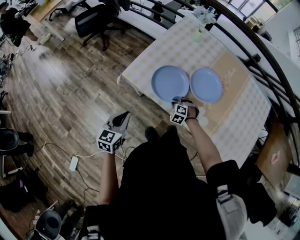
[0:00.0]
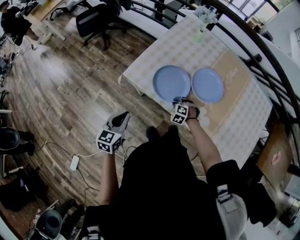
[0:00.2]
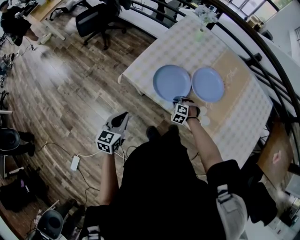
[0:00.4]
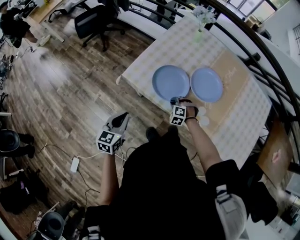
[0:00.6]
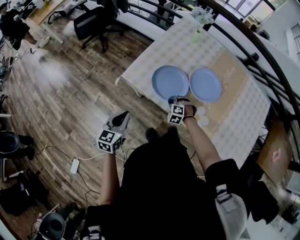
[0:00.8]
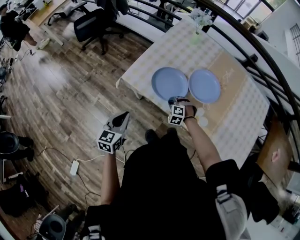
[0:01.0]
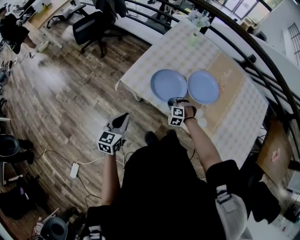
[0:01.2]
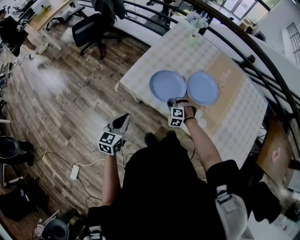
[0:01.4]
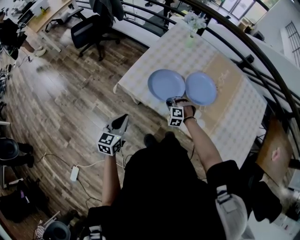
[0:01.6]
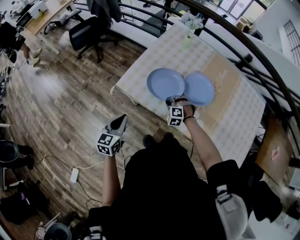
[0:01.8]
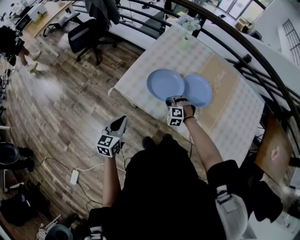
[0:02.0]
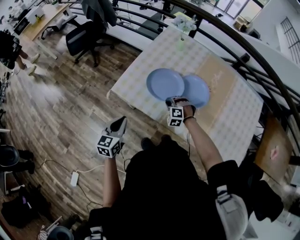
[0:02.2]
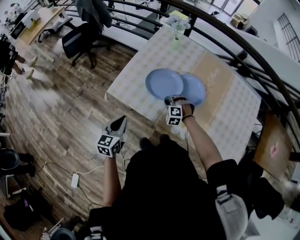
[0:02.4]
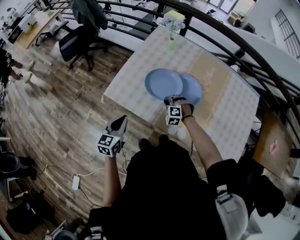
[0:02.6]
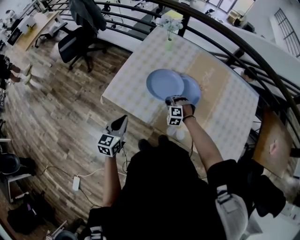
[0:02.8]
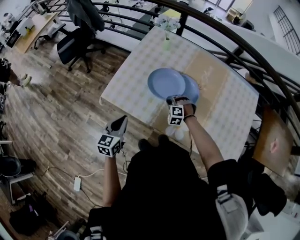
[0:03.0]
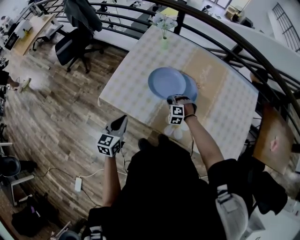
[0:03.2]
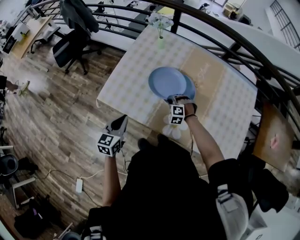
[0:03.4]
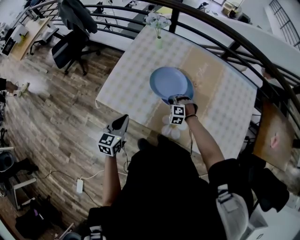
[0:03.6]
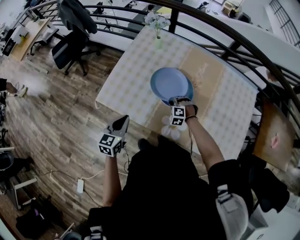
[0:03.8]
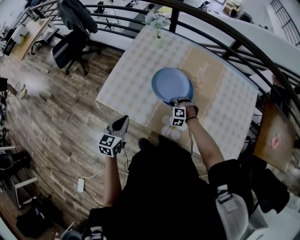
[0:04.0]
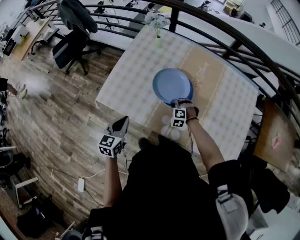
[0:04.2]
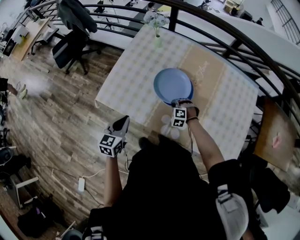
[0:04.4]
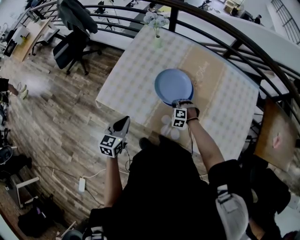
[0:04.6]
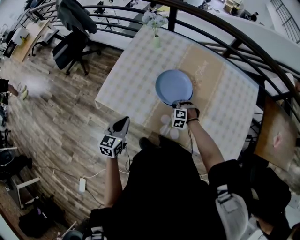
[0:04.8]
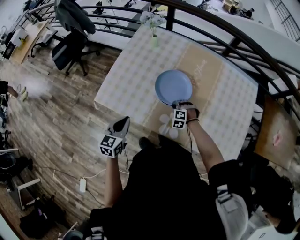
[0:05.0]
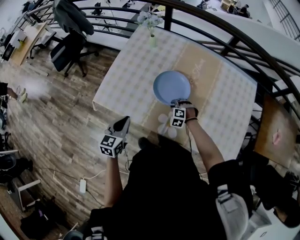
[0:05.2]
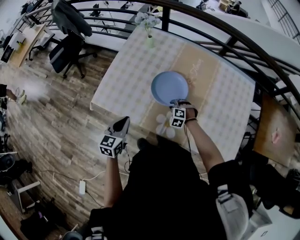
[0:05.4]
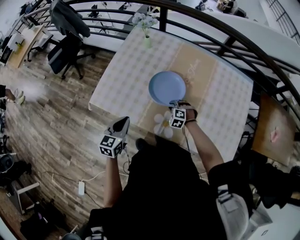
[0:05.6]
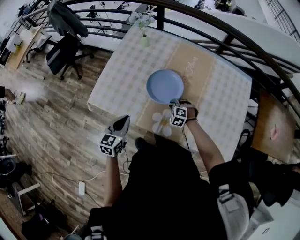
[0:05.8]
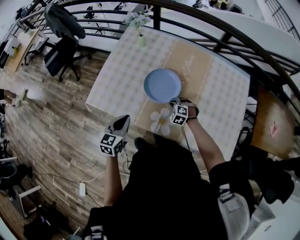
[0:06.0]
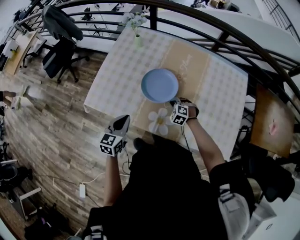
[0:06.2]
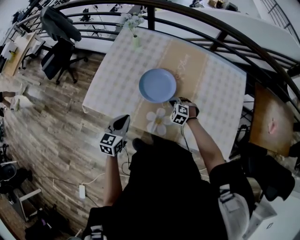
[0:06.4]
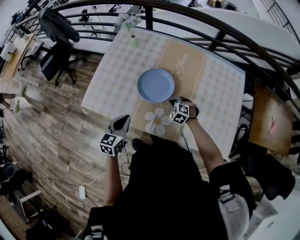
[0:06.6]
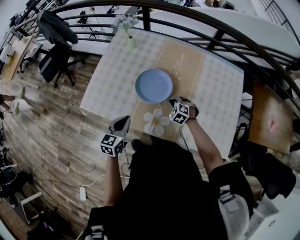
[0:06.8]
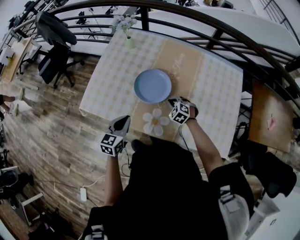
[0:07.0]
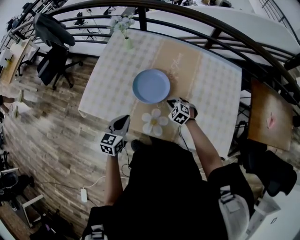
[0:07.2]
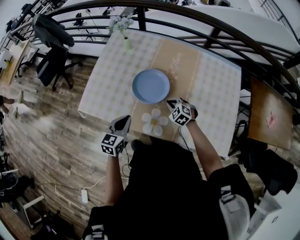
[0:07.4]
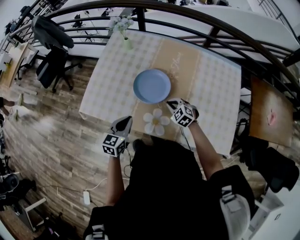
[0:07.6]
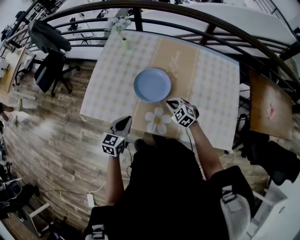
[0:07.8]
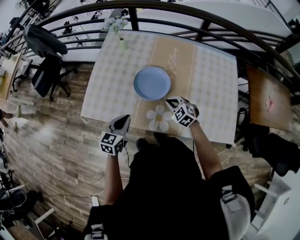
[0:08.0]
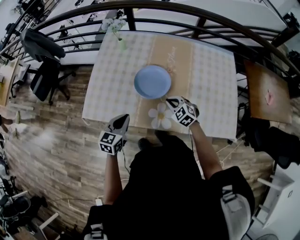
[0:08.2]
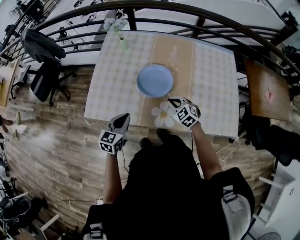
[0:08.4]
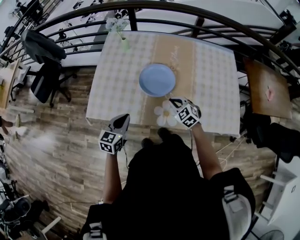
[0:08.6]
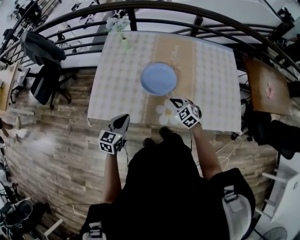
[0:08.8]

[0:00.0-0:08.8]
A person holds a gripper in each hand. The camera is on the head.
0:00.0 to 0:01.4: The grippers stay close to where they were, moving slightly.
0:01.4 to 0:03.0: The right gripper travels to the right, forward and upward by roughly 15 cm. The left gripper travels to the right and forward by roughly 15 cm.
0:03.0 to 0:04.4: Both grippers move to the right, approximately 5 cm.
0:04.4 to 0:05.8: Both grippers travel together to the right, approximately 5 cm.
0:05.8 to 0:07.4: The left gripper goes approximately 10 cm to the right. The right gripper shifts some 10 cm to the right and upward, and rotates approximately 20 degrees.
0:07.4 to 0:08.8: The left gripper is displaced to the left by some 10 cm. The right gripper shifts some 10 cm to the left and backward.

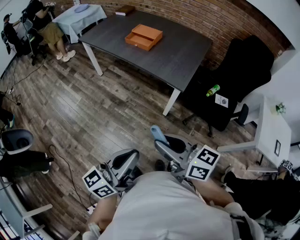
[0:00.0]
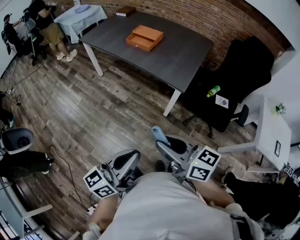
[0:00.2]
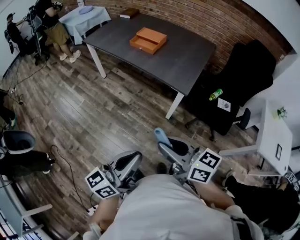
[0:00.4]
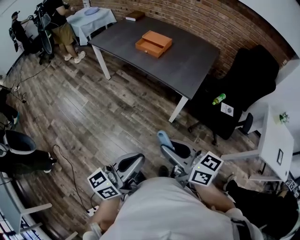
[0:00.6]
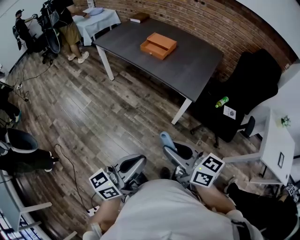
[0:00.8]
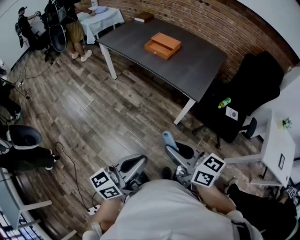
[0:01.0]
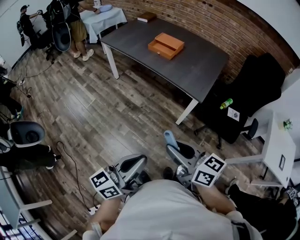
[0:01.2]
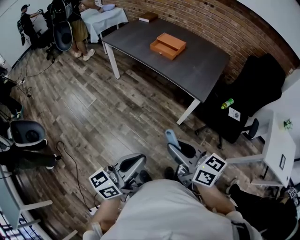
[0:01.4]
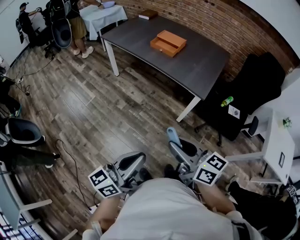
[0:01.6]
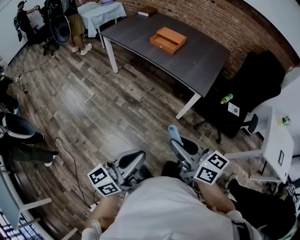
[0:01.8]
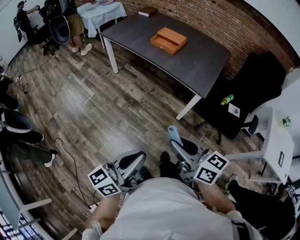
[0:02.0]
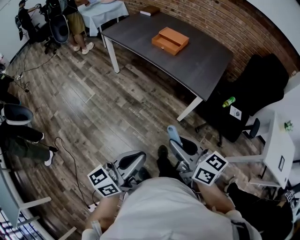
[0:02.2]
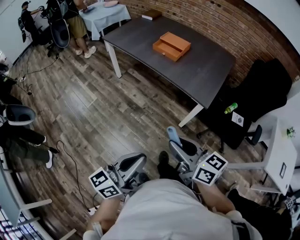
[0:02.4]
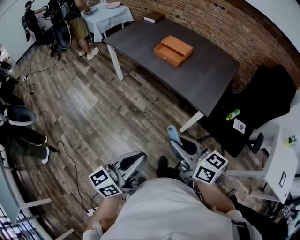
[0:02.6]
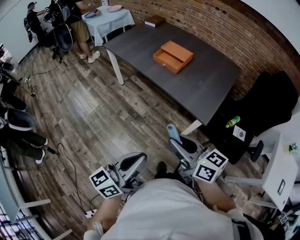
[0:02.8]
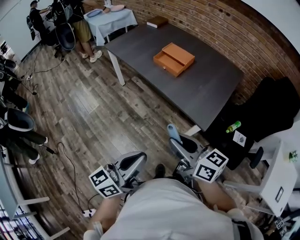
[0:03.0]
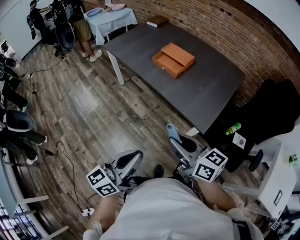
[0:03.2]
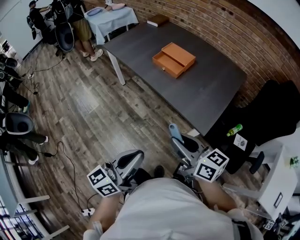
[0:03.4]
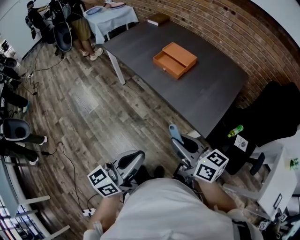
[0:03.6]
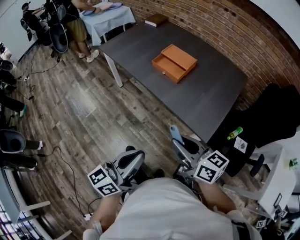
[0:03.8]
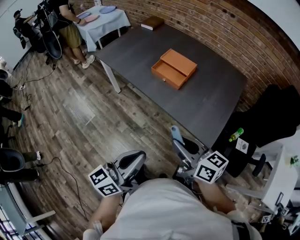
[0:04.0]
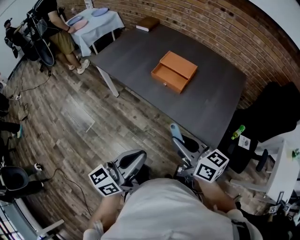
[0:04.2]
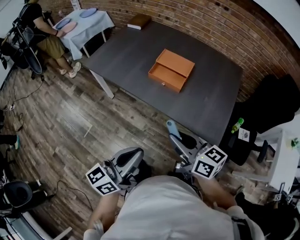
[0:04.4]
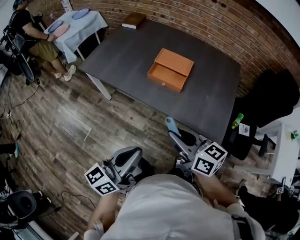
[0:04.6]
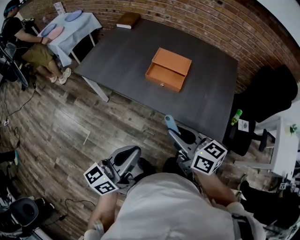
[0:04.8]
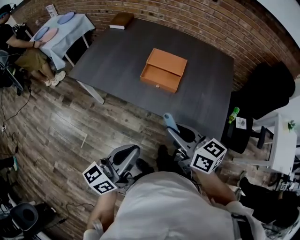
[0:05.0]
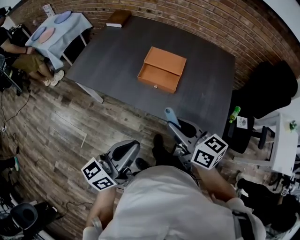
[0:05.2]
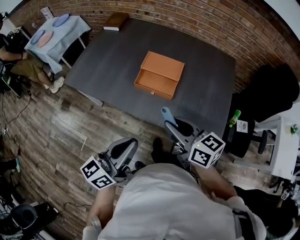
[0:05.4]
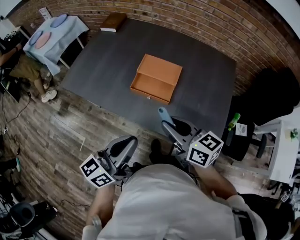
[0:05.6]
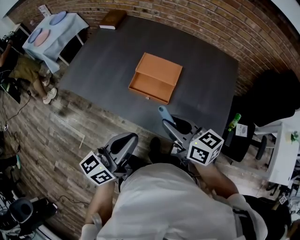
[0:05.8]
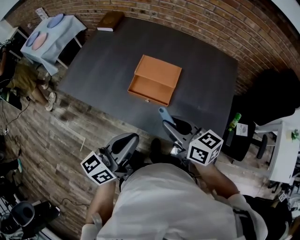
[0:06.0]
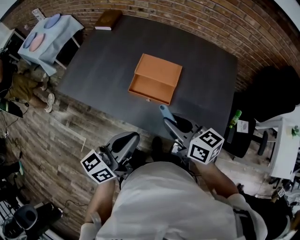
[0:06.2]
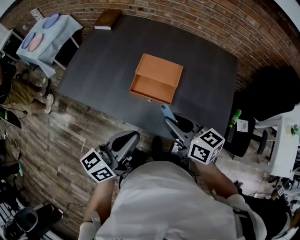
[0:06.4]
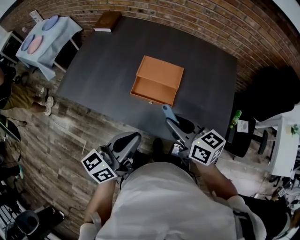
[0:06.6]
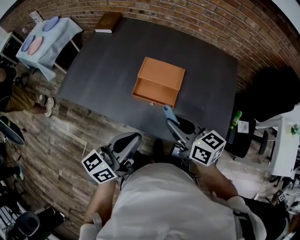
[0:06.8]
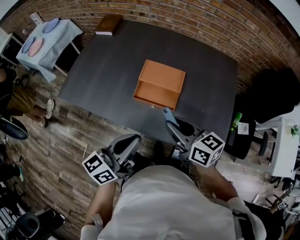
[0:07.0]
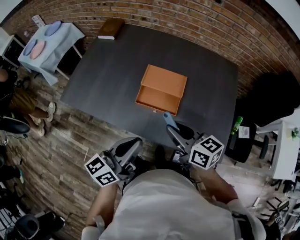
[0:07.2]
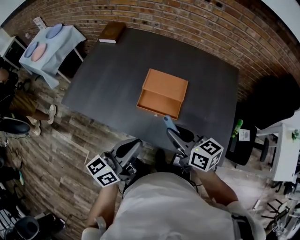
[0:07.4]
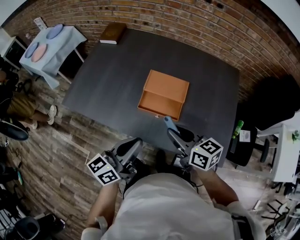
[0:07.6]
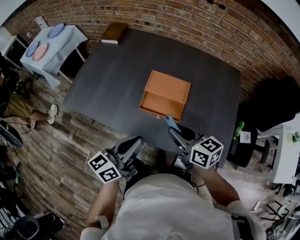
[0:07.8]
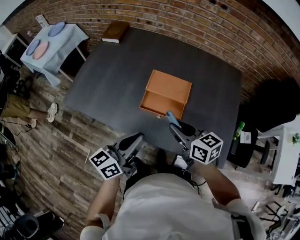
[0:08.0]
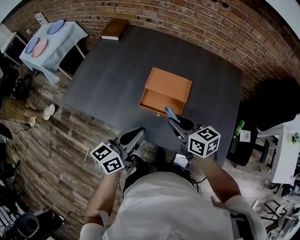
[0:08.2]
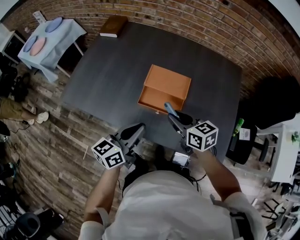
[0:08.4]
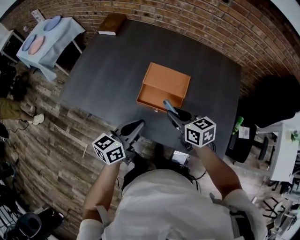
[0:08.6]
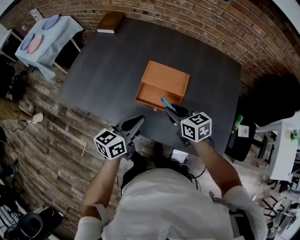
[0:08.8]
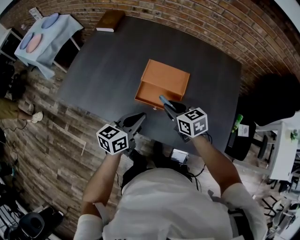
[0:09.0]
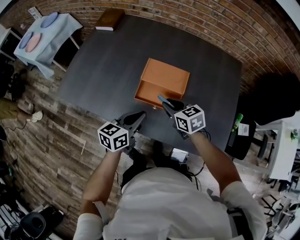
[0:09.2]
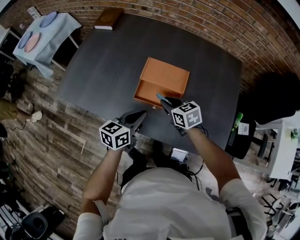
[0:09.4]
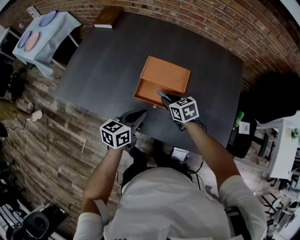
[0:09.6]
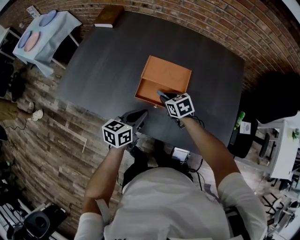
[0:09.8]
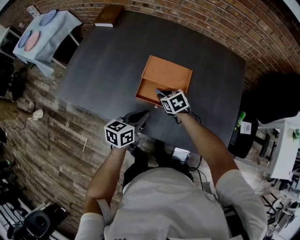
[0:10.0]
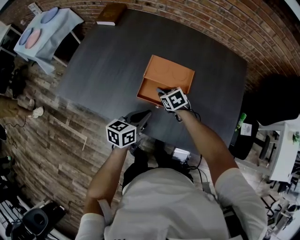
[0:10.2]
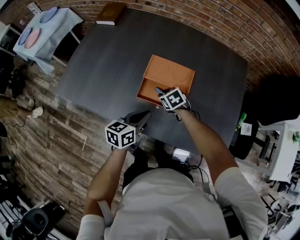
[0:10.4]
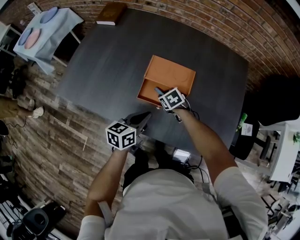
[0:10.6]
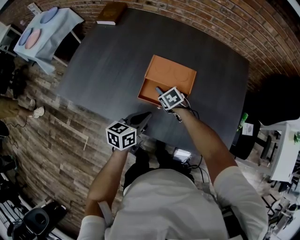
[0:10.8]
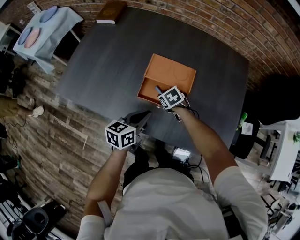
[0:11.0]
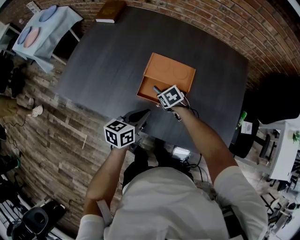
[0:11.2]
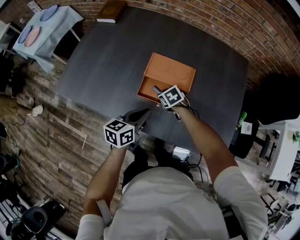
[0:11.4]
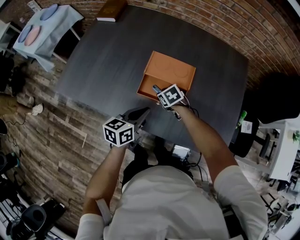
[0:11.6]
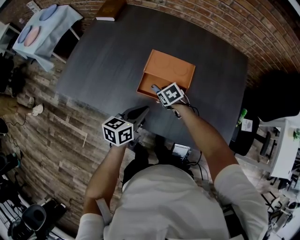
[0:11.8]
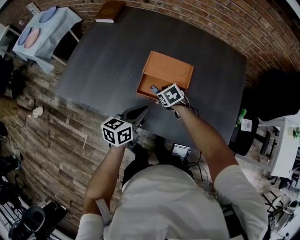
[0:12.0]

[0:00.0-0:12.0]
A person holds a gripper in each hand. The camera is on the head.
0:00.0 to 0:01.6: Both grippers move to the left, some 10 cm.
0:01.6 to 0:03.0: The left gripper is displaced forward and to the right by about 20 cm, while the right gripper travels forward by about 20 cm.
0:03.0 to 0:04.4: The right gripper travels forward by about 20 cm, while the left gripper travels forward and to the left by some 25 cm.
0:04.4 to 0:06.0: The grippers both shift forward by roughly 20 cm.
0:06.0 to 0:07.6: The right gripper moves roughly 5 cm. The left gripper is displaced forward and to the left by approximately 5 cm.
0:07.6 to 0:09.0: The grippers both shift downward and forward by about 15 cm.
0:09.0 to 0:10.4: The left gripper is displaced downward by roughly 5 cm; the right gripper is displaced downward and forward by some 15 cm, and swivels about 30 degrees.
0:10.4 to 0:12.0: The grippers stay close to where they were, moving slightly.

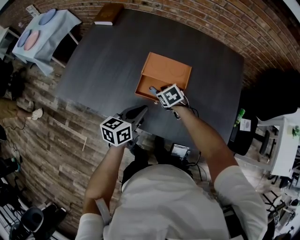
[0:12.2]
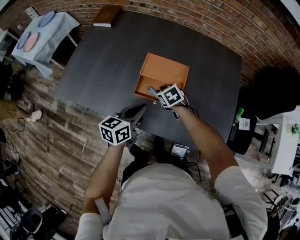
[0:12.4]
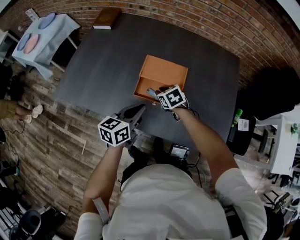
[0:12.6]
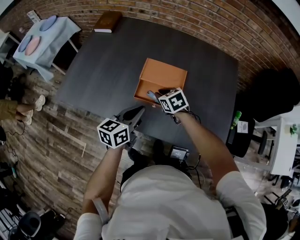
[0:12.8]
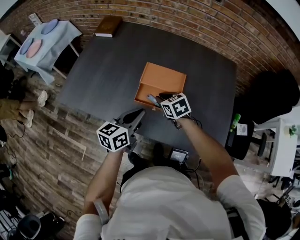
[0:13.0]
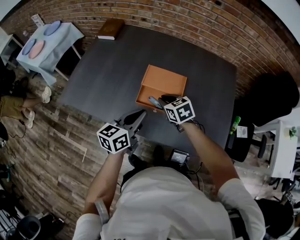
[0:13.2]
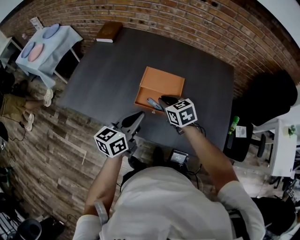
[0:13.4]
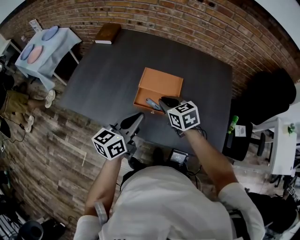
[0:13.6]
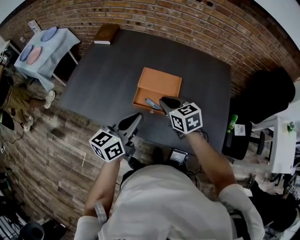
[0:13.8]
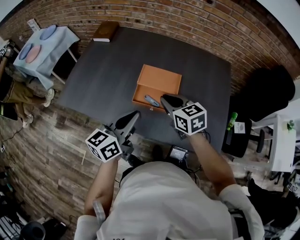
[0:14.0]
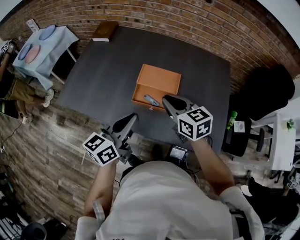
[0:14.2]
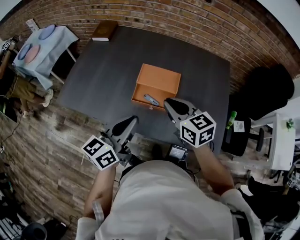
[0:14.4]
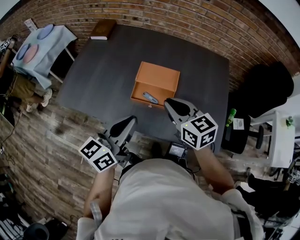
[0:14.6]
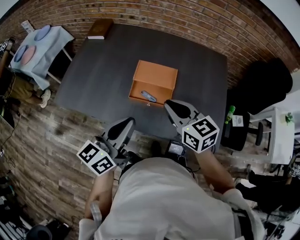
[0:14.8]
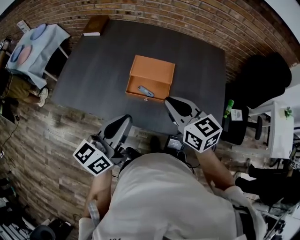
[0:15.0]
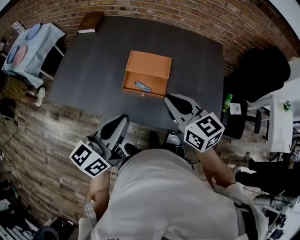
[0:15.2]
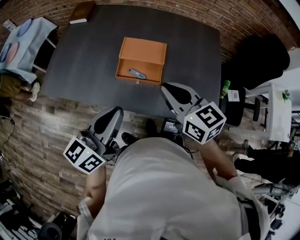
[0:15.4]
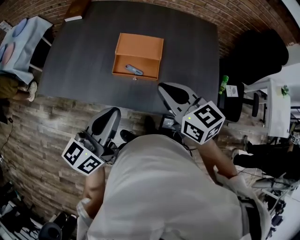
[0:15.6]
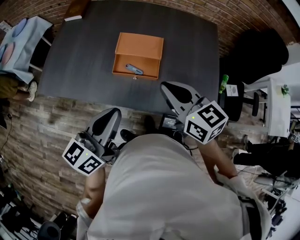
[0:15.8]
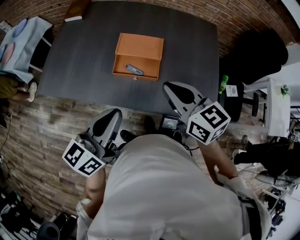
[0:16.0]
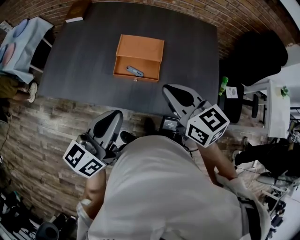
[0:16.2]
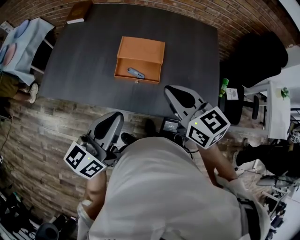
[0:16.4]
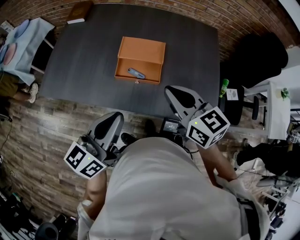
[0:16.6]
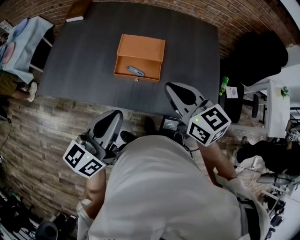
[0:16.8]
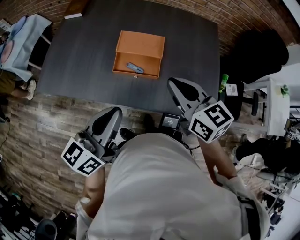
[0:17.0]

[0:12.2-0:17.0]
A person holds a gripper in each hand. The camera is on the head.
0:12.2 to 0:13.8: The left gripper goes roughly 10 cm upward. Meanwhile the right gripper is displaced upward by some 20 cm, and swivels about 30 degrees.
0:13.8 to 0:15.4: The left gripper heads backward and upward, covering about 10 cm, while the right gripper is displaced upward and backward by about 15 cm.
0:15.4 to 0:17.0: The grippers move only a little.
